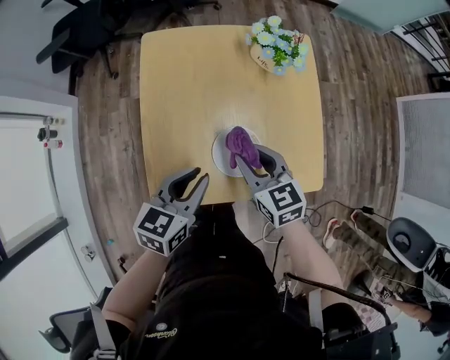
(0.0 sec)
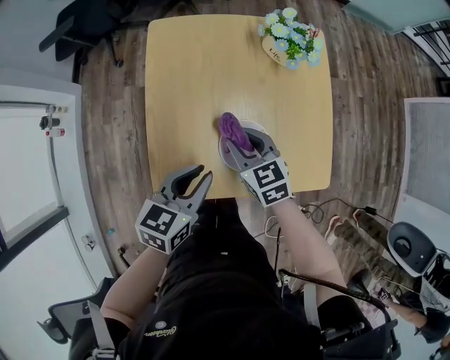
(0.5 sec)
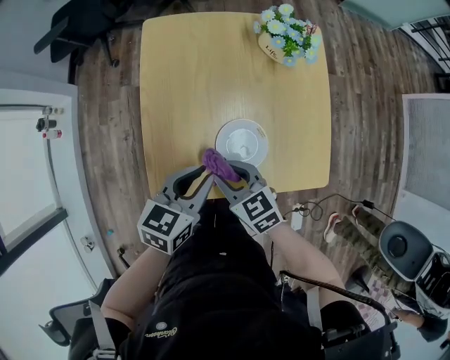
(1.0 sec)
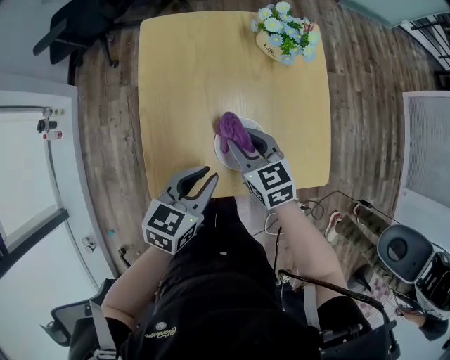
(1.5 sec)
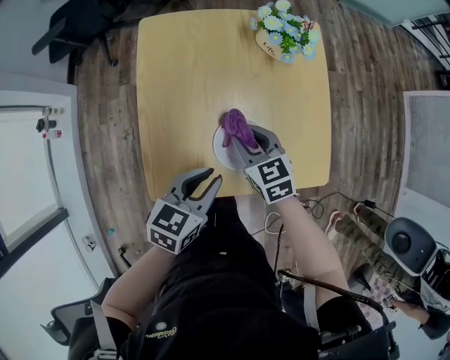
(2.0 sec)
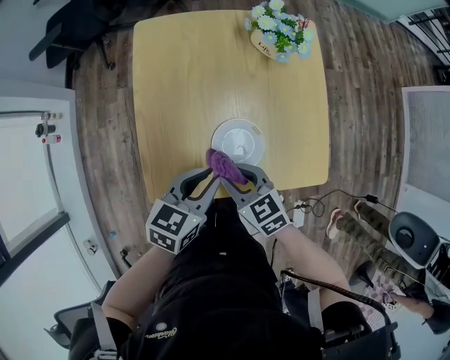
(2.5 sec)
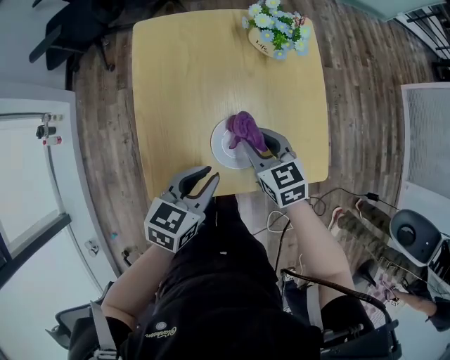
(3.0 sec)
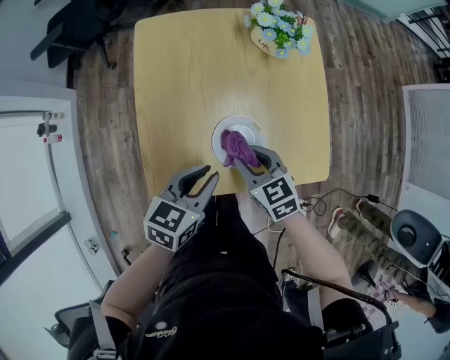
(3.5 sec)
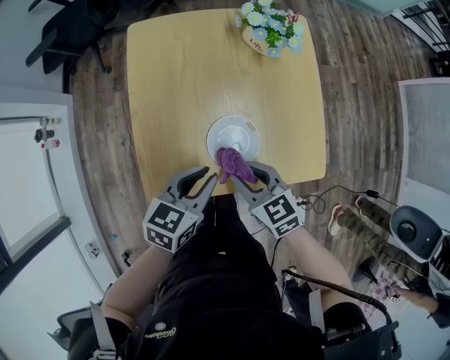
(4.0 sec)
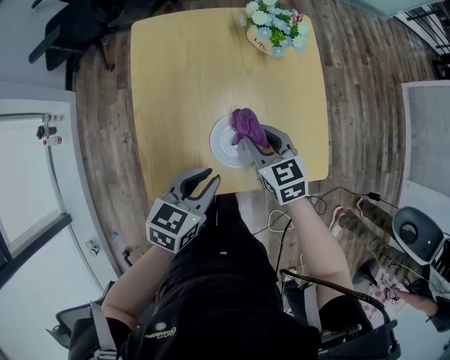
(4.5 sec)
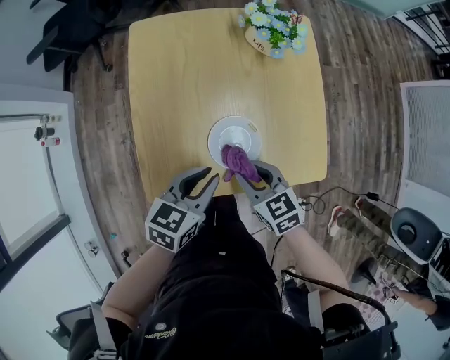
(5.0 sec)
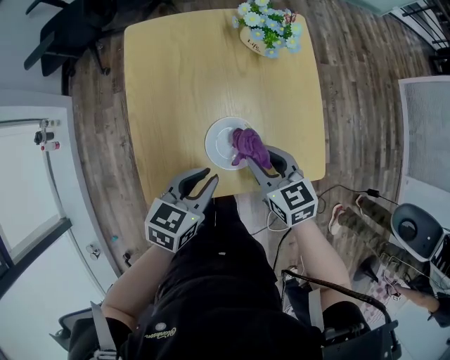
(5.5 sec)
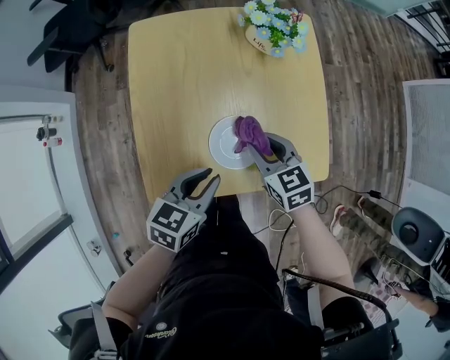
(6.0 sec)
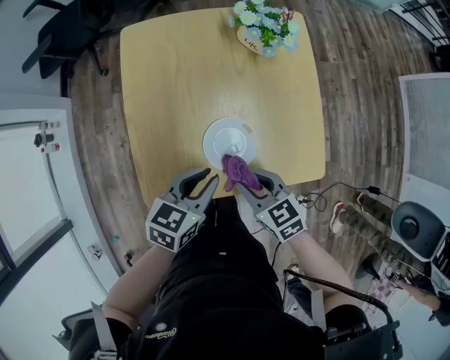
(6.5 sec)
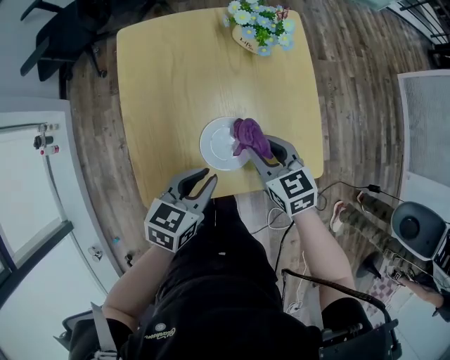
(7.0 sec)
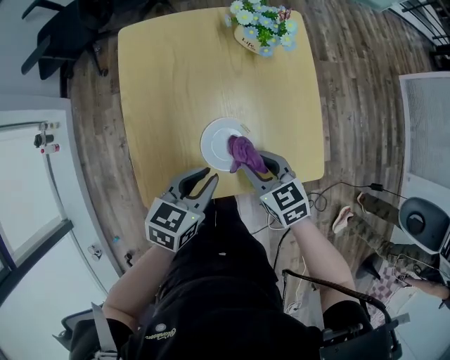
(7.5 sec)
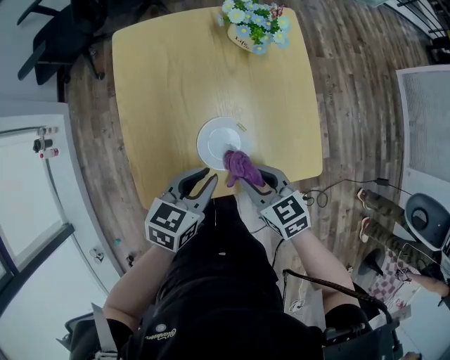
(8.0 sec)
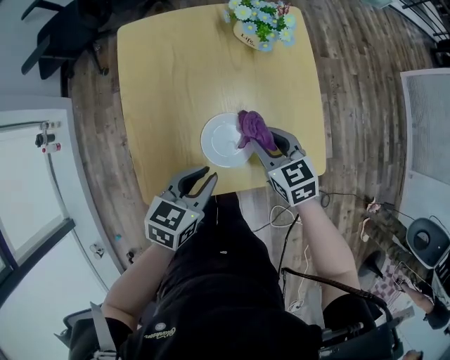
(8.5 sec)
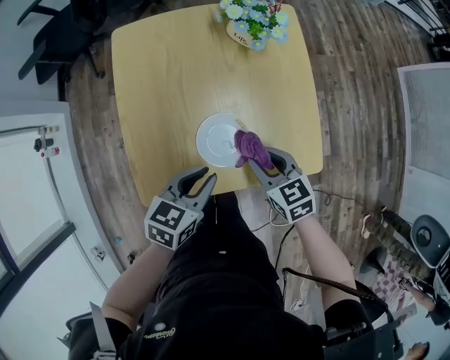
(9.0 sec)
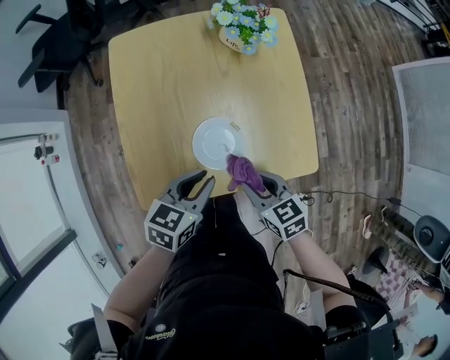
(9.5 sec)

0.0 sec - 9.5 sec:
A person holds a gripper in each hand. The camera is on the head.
0.0 sec - 2.0 sec: The right gripper travels downward by some 5 cm, and moves about 5 cm backward and comes back.
2.0 sec - 4.0 sec: The right gripper goes forward and backward, about 10 cm each way, reversing 2 times.
4.0 sec - 5.5 sec: The right gripper moves forward and backward over roughly 10 cm, changing direction 2 times.
5.5 sec - 7.5 sec: The right gripper moves forward and backward over some 10 cm, changing direction 2 times.
7.5 sec - 9.5 sec: The right gripper is displaced backward by roughly 5 cm.

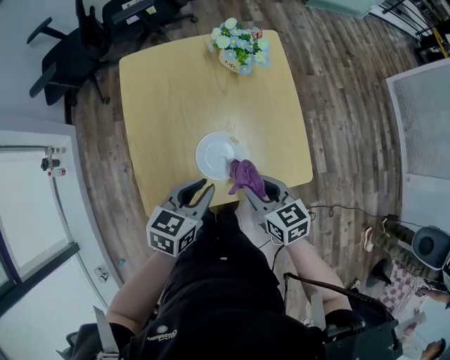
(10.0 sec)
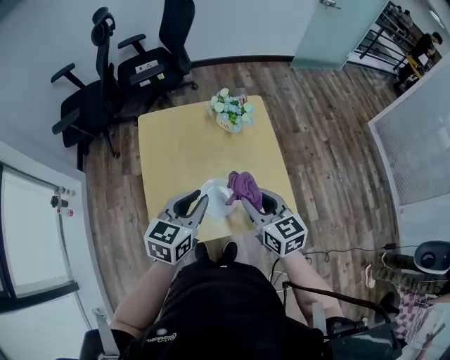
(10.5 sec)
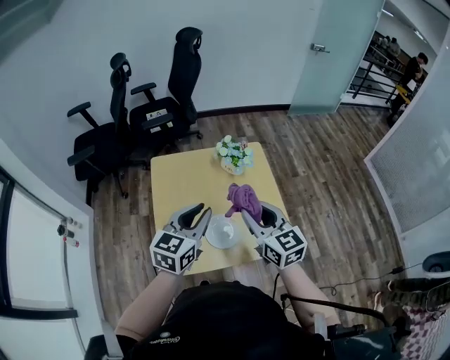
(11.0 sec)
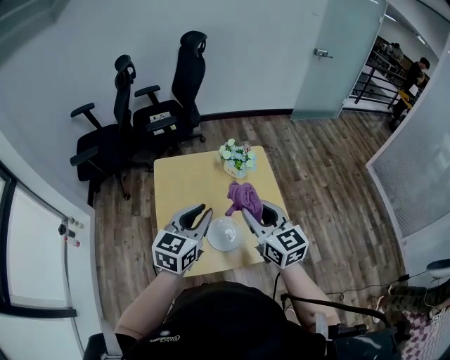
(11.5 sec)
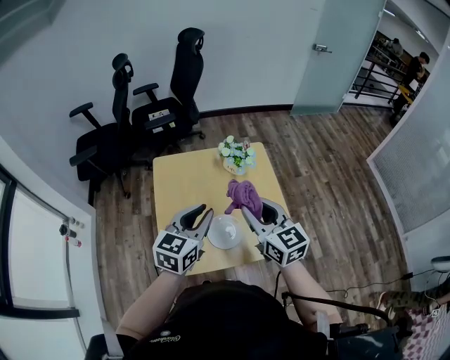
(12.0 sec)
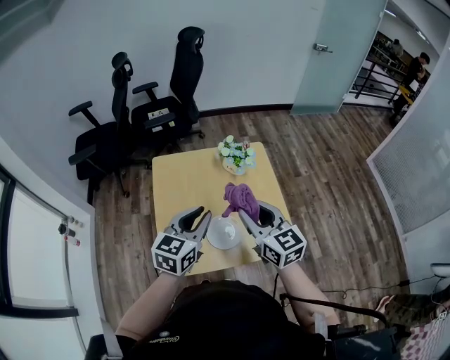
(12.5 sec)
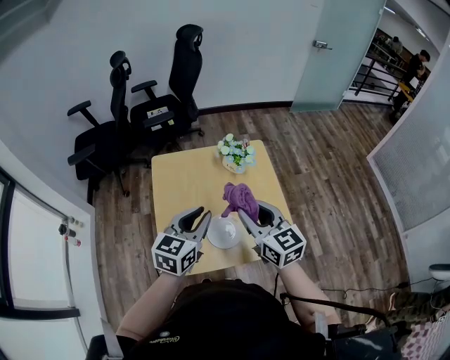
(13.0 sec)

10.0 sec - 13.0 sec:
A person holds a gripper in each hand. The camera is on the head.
10.0 sec - 11.5 sec: The grippers both shift upward by roughly 20 cm. The left gripper swivels roughly 30 degrees; the right gripper swivels roughly 30 degrees.
11.5 sec - 13.0 sec: The grippers move only a little.

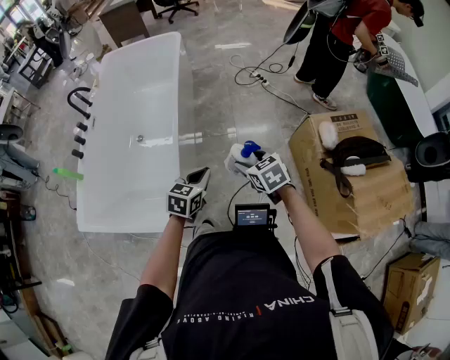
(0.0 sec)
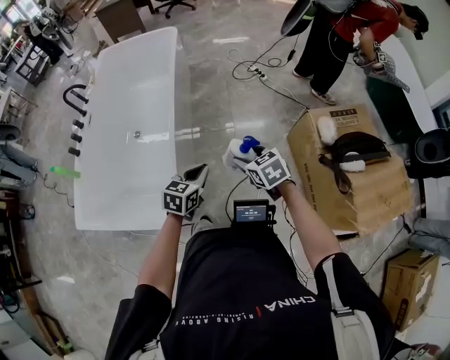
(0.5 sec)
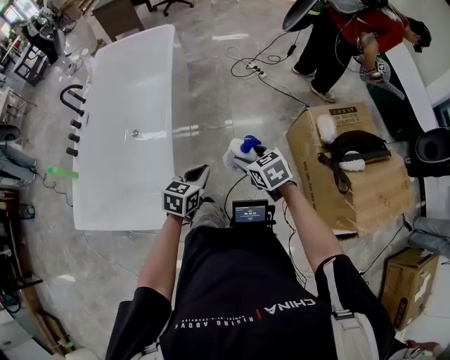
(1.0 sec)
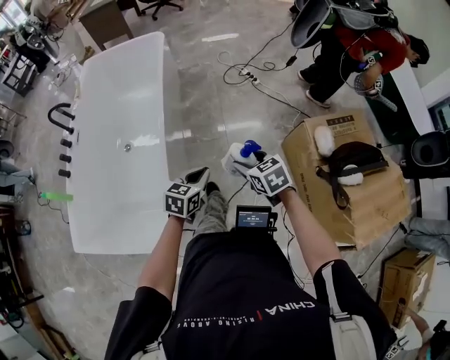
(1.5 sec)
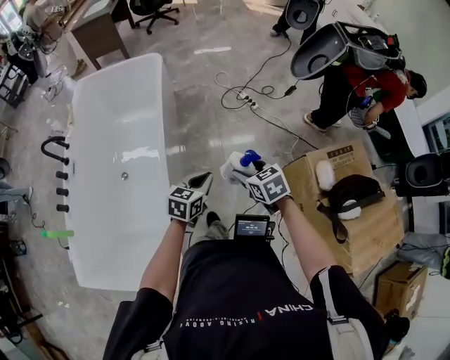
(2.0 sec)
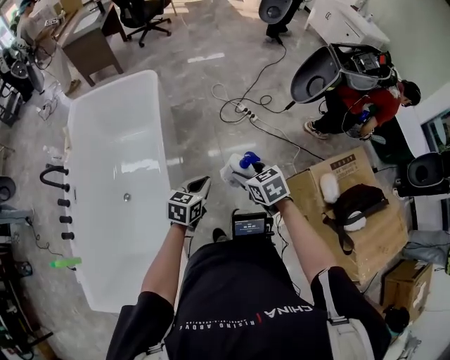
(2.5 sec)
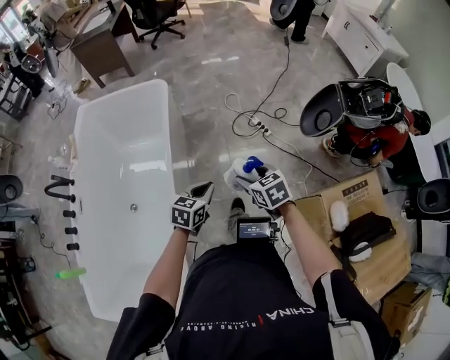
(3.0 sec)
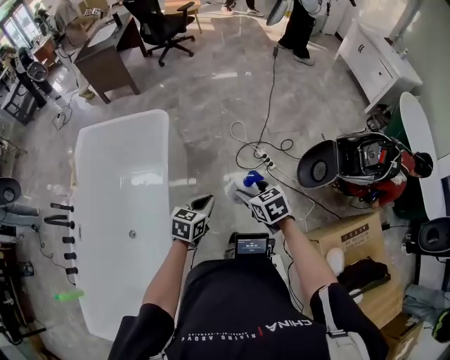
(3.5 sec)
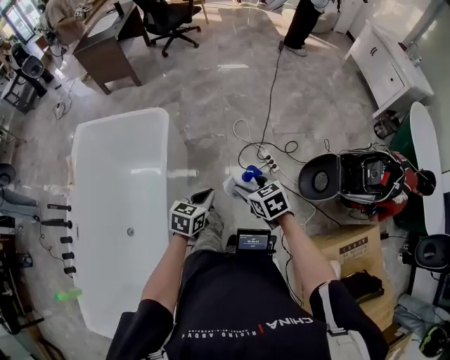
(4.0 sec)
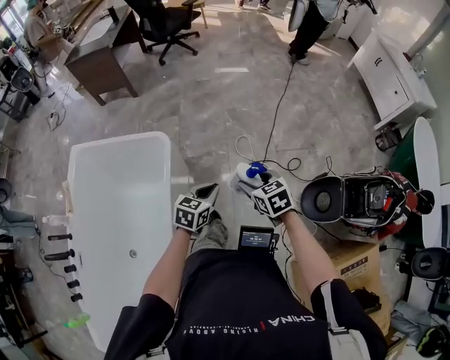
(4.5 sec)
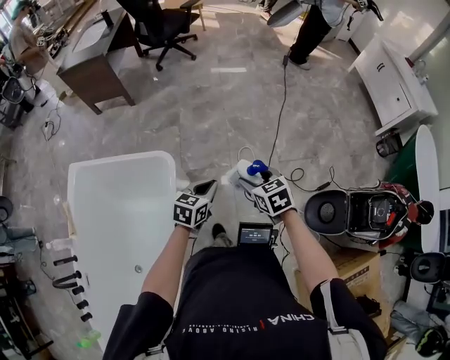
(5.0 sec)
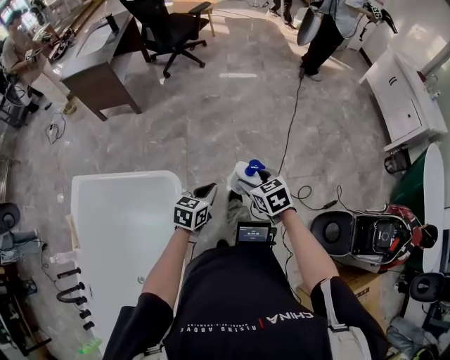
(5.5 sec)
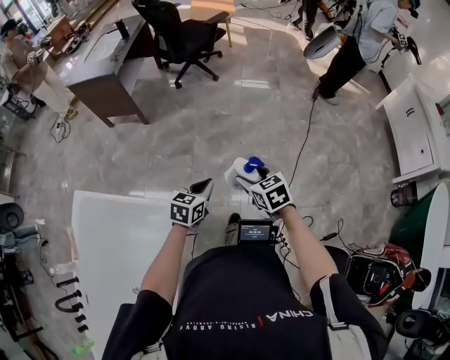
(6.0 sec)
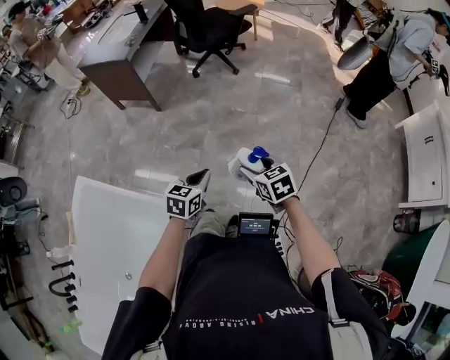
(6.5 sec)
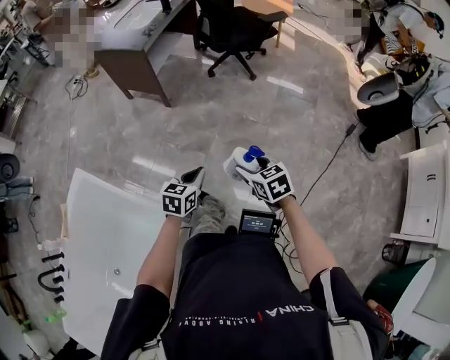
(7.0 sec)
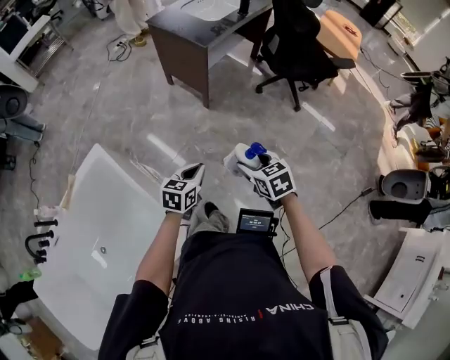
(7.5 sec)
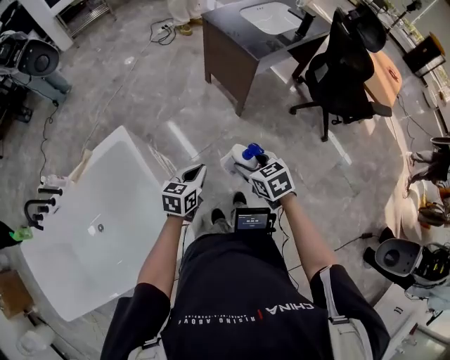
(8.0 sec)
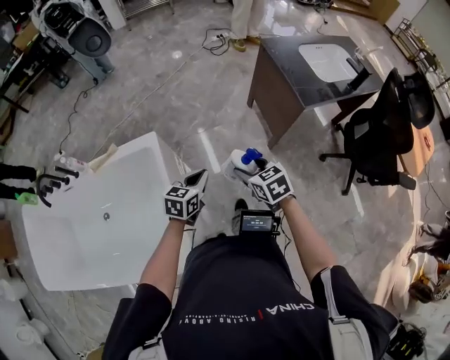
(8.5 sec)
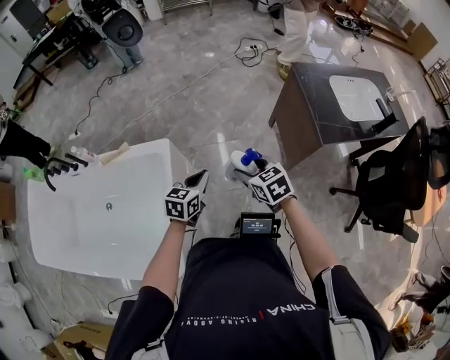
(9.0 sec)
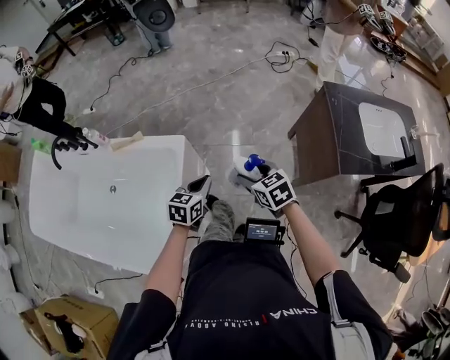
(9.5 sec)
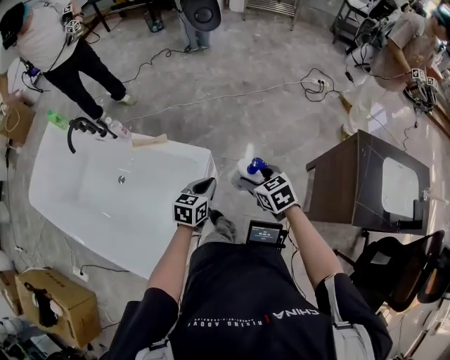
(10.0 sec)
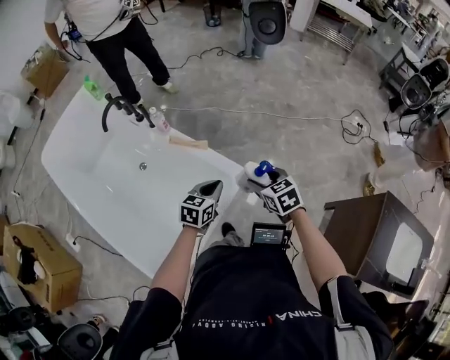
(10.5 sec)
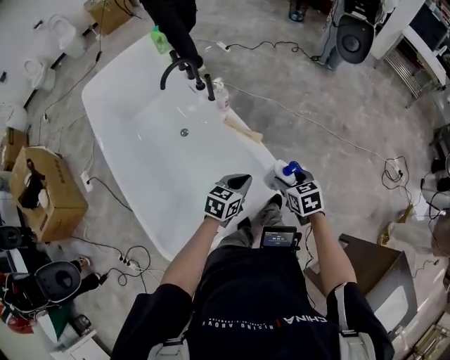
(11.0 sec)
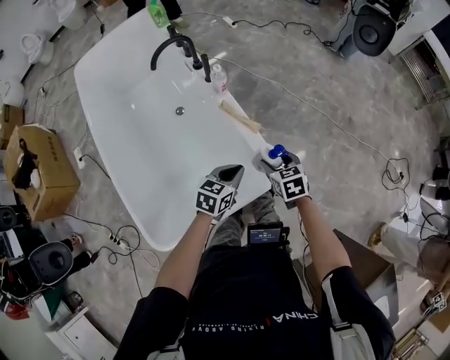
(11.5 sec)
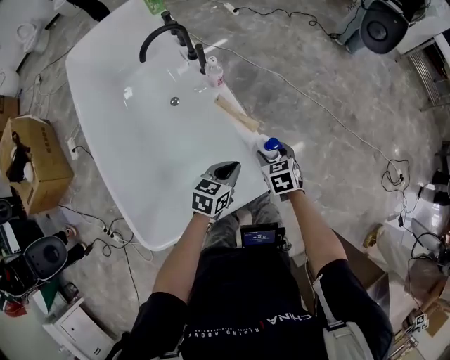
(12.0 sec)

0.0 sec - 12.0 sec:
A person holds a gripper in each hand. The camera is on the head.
0.0 sec - 2.0 sec: The grippers both shift forward by approximately 25 cm.
2.0 sec - 4.0 sec: Both grippers are carried forward, approximately 50 cm.
4.0 sec - 6.0 sec: Both grippers are carried forward, approximately 60 cm.
6.0 sec - 8.0 sec: Both grippers are carried about 50 cm. The left gripper changes its angle by roughly 60 degrees, while the right gripper turns by approximately 50 degrees.
8.0 sec - 10.0 sec: The left gripper shifts by about 35 cm, and changes its angle by approximately 50 degrees; the right gripper ends up roughly 50 cm from where it was, and turns by roughly 50 degrees.
10.0 sec - 12.0 sec: The right gripper moves about 40 cm, and swivels roughly 30 degrees; the left gripper changes place by approximately 30 cm, and rotates approximately 40 degrees.

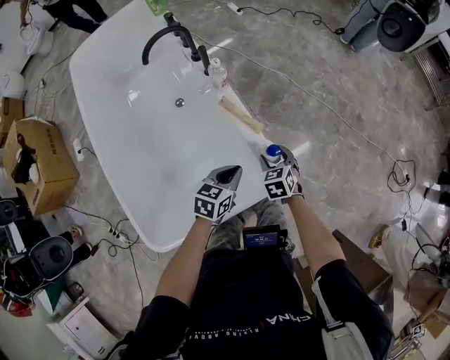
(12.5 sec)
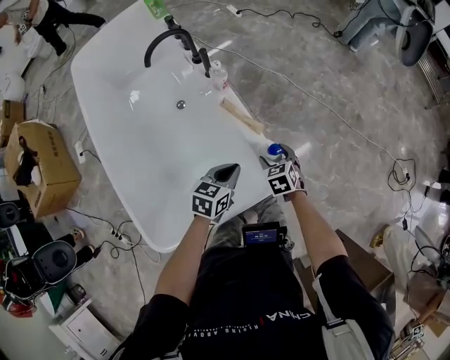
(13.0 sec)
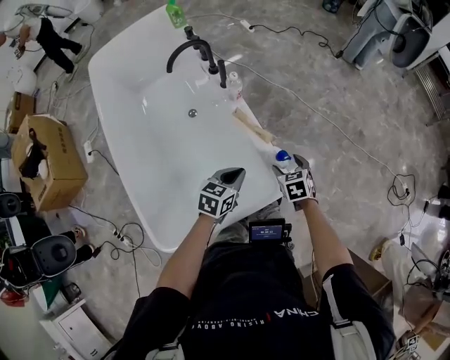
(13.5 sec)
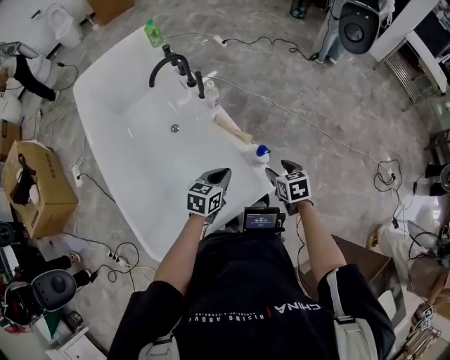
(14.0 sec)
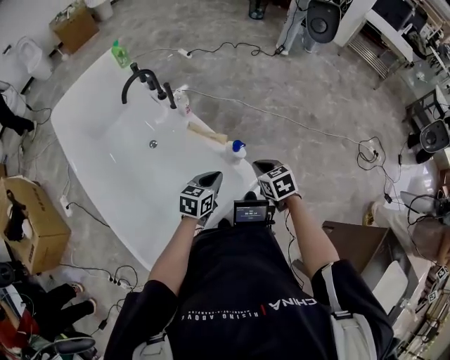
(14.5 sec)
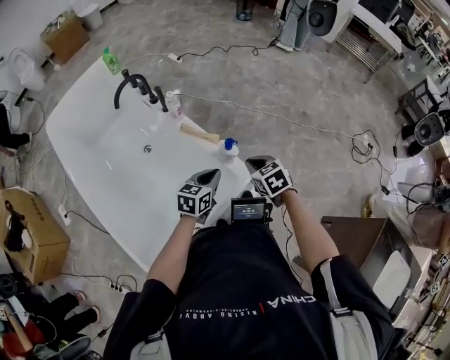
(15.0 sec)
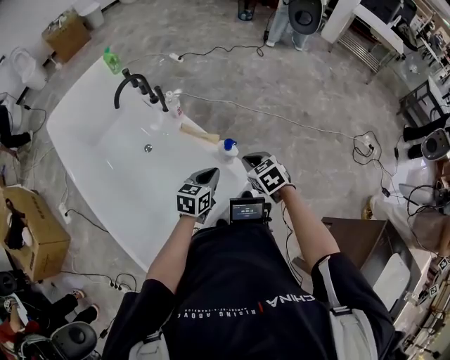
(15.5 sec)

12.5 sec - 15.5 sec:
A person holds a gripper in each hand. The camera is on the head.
12.5 sec - 14.0 sec: The right gripper travels upward and backward by approximately 10 cm, while the left gripper travels upward by about 5 cm.
14.0 sec - 15.5 sec: The left gripper goes roughly 5 cm to the right. The right gripper is displaced upward by about 5 cm, and closes up.
